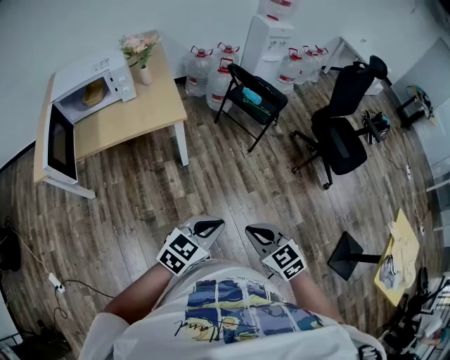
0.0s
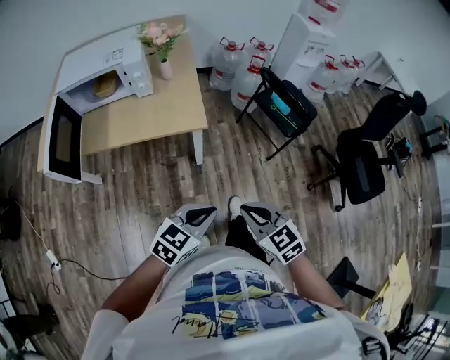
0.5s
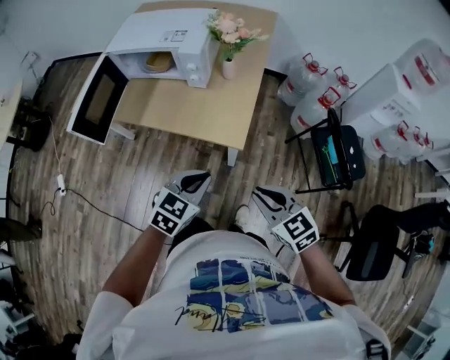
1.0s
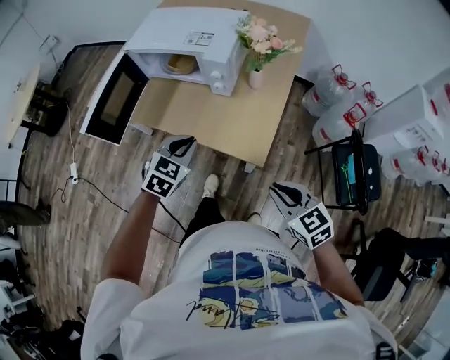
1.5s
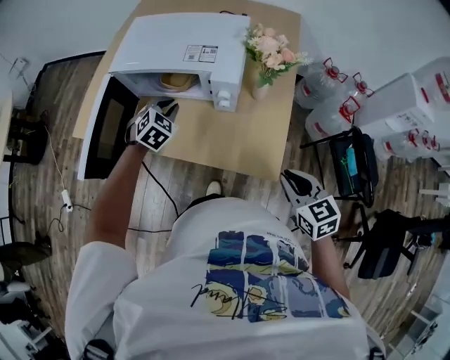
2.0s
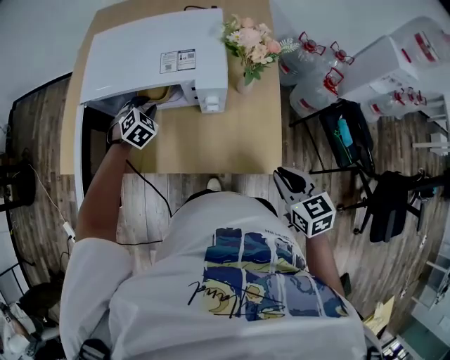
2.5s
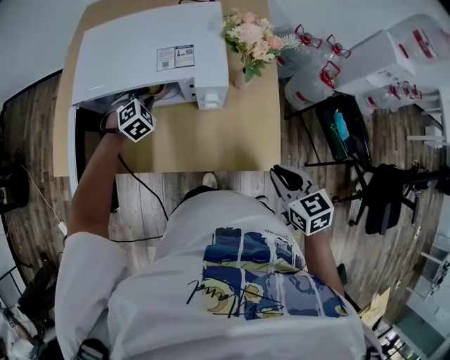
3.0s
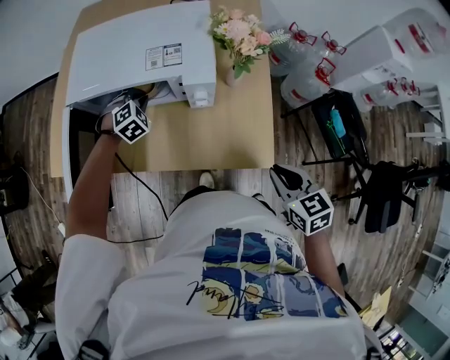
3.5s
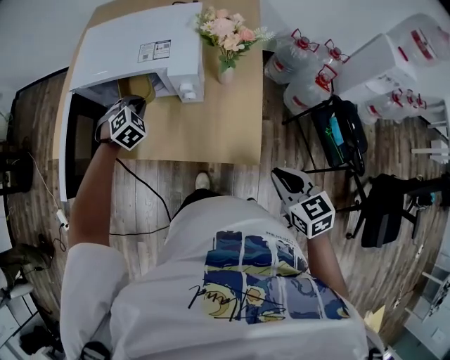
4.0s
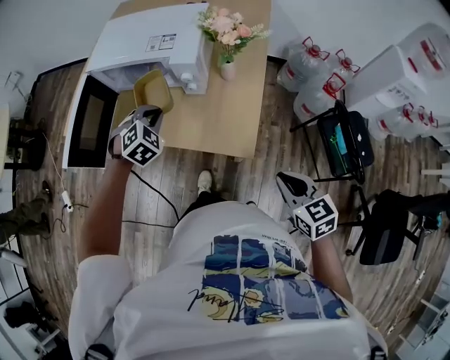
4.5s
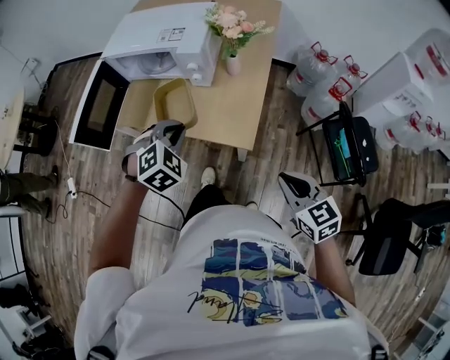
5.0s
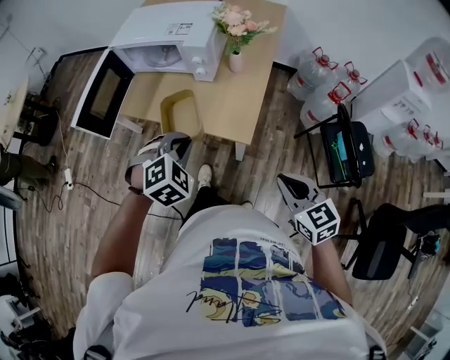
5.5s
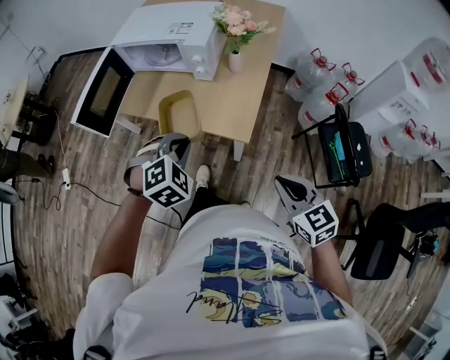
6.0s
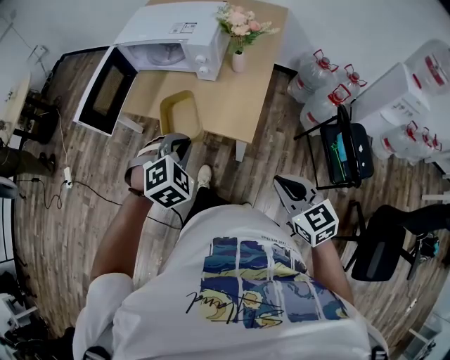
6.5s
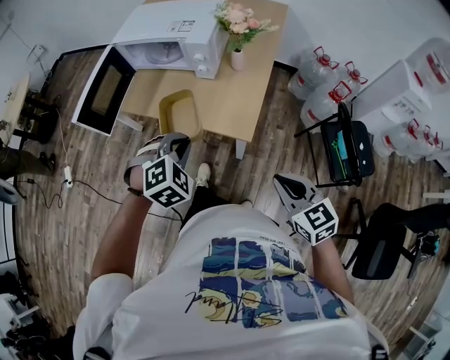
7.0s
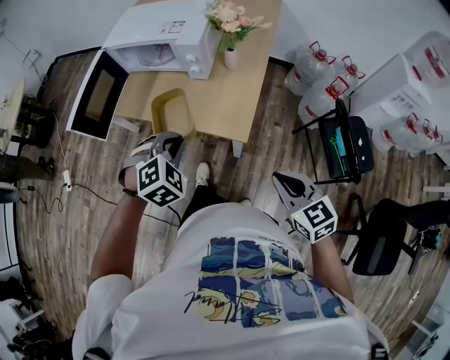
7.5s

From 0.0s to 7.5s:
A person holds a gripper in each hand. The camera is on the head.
From 0.0s to 2.0s: The two grippers travel together, about 70 cm. The left gripper turns by approximately 60 degrees.
From 2.0s to 4.0s: The right gripper shifts by approximately 5 cm, while the left gripper goes forward and returns, about 10 cm each way.
From 4.0s to 5.5s: The right gripper moves backward, approximately 15 cm. Meanwhile the left gripper heads backward, covering approximately 35 cm.
From 5.5s to 7.5s: The grippers stay close to where they were, moving slightly.

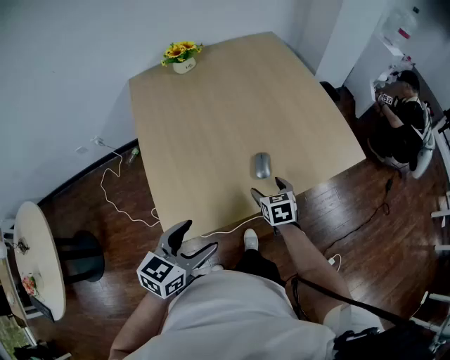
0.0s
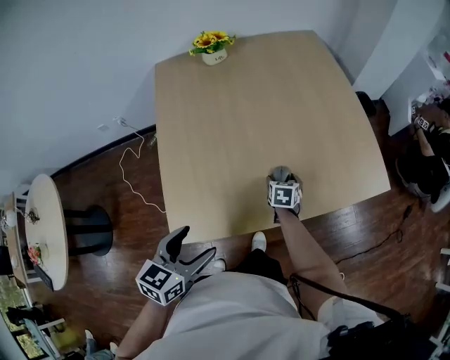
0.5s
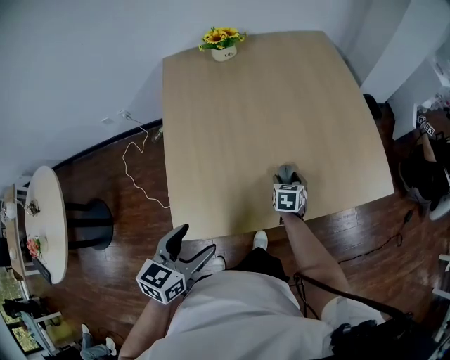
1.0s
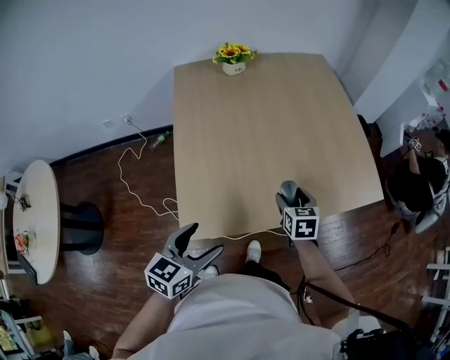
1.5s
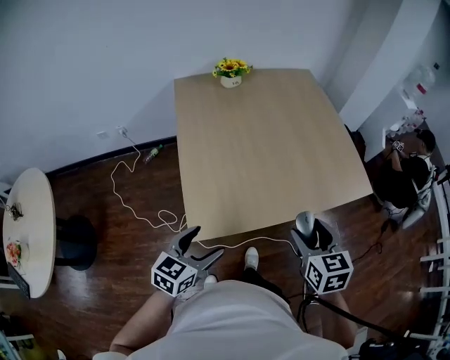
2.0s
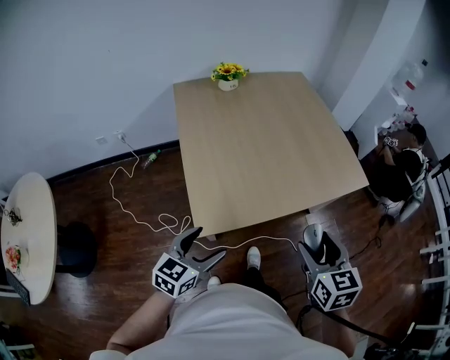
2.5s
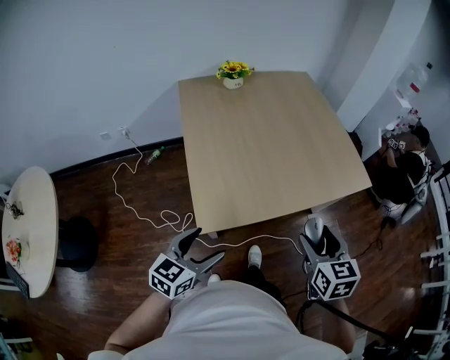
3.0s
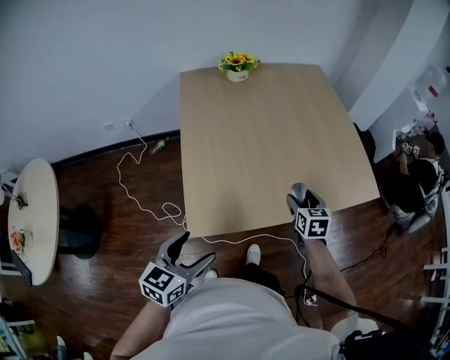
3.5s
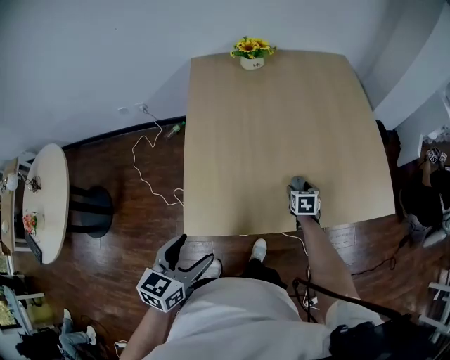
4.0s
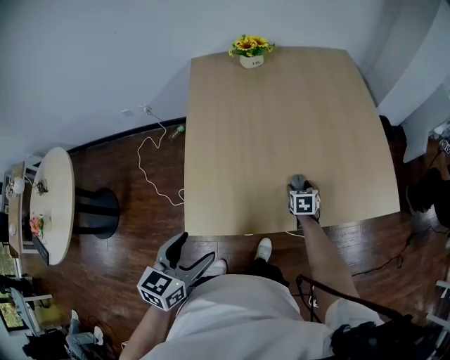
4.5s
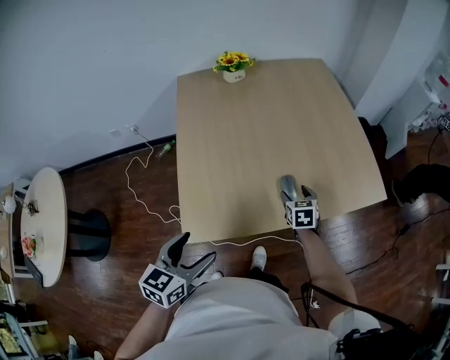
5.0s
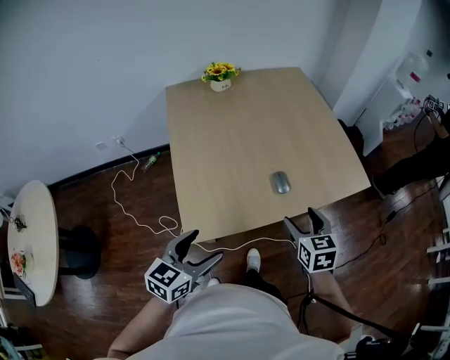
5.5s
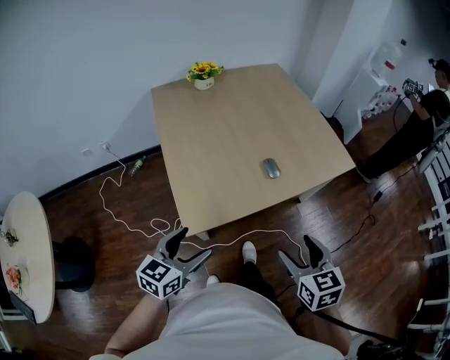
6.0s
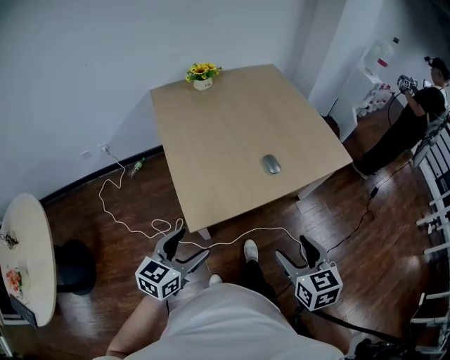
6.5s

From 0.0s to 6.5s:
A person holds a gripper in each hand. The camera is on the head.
From 0.0s to 2.0s: The left gripper shifts approximately 10 cm to the left; the right gripper goes about 25 cm upward and backward.
From 2.0s to 4.5s: The left gripper moves some 5 cm. Meanwhile the right gripper travels downward and forward by approximately 40 cm.
From 4.5s to 6.5s: The left gripper moves backward and to the left, some 15 cm, and turns by some 30 degrees; the right gripper moves backward and upward, roughly 50 cm, and rotates about 20 degrees.

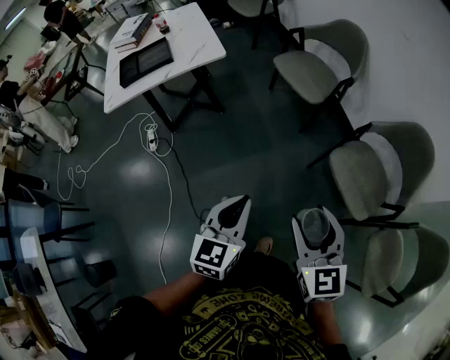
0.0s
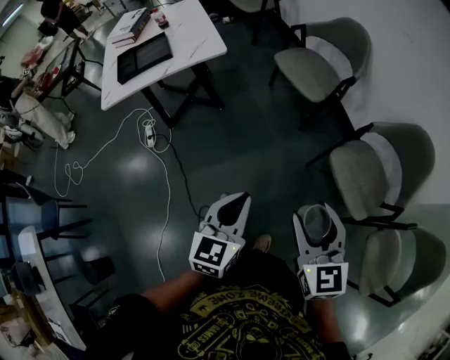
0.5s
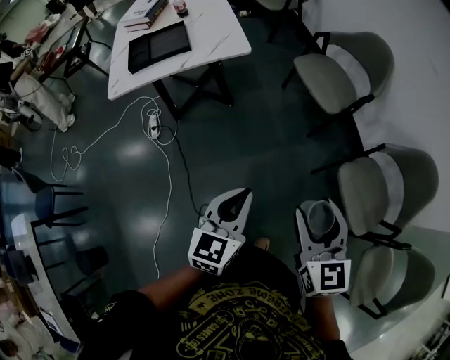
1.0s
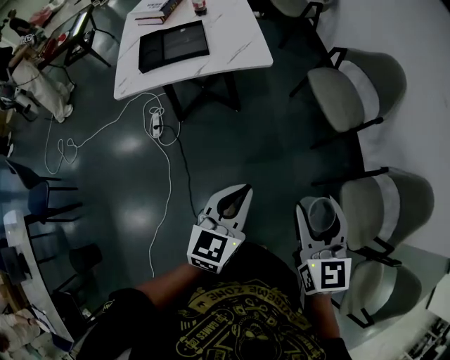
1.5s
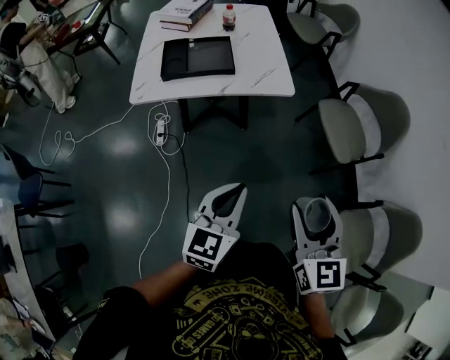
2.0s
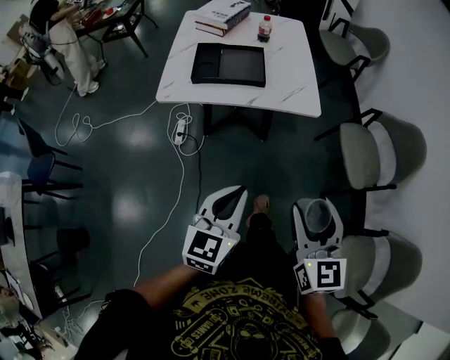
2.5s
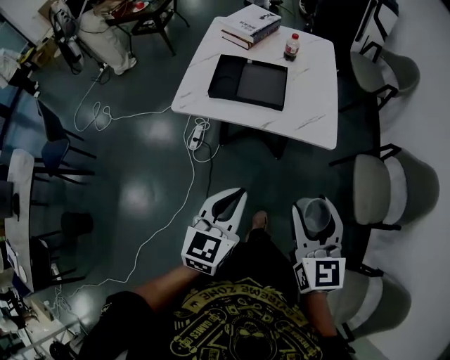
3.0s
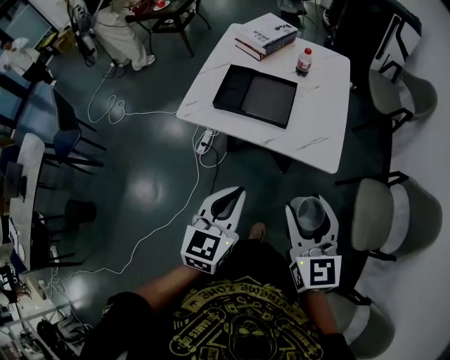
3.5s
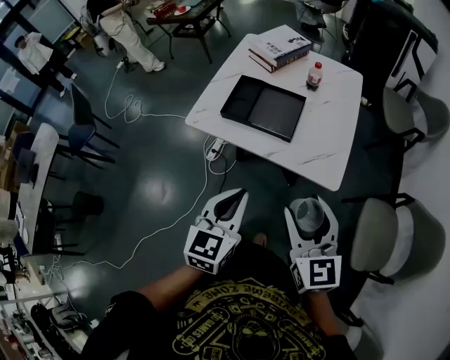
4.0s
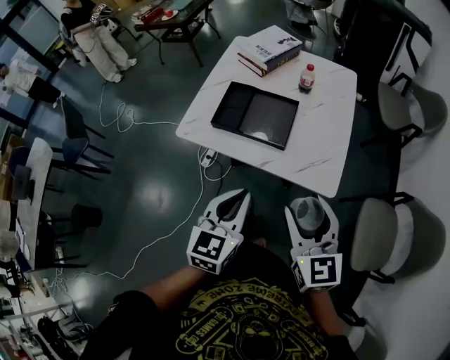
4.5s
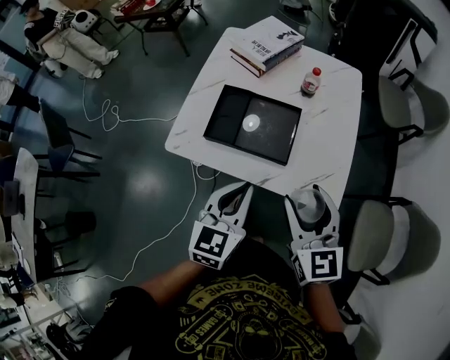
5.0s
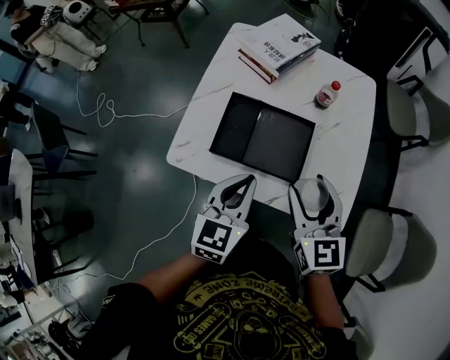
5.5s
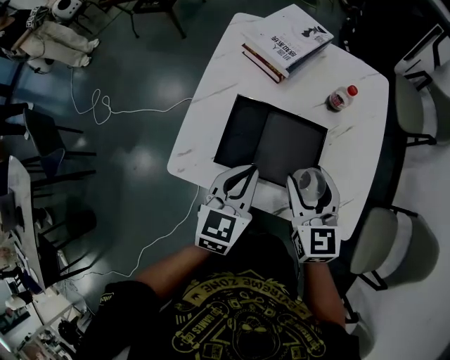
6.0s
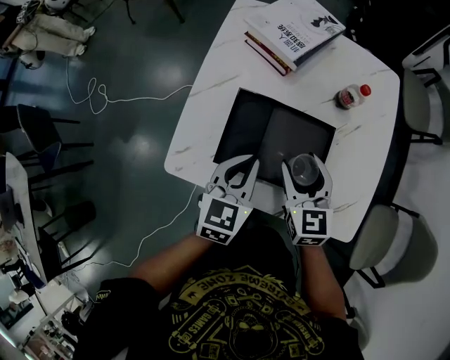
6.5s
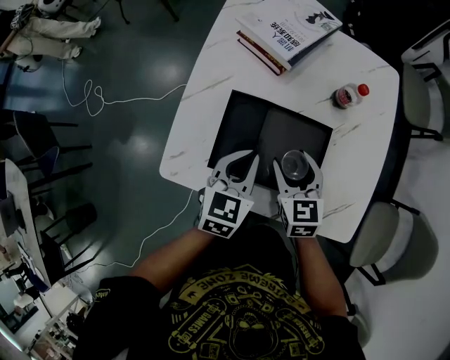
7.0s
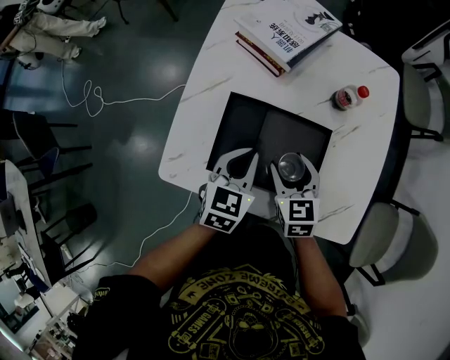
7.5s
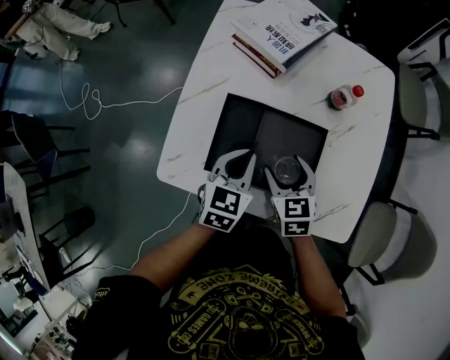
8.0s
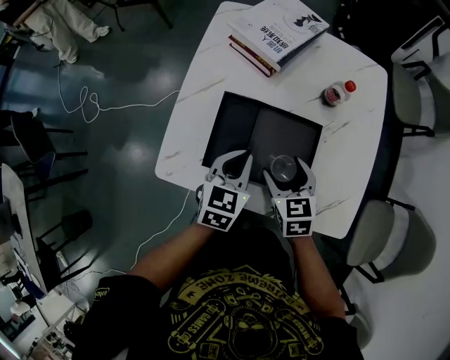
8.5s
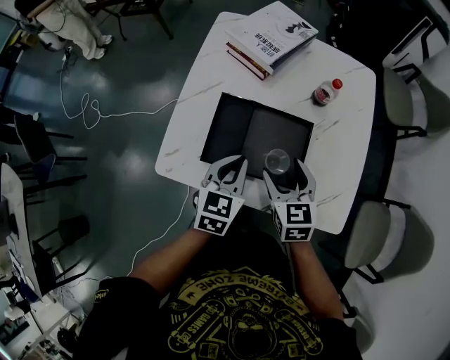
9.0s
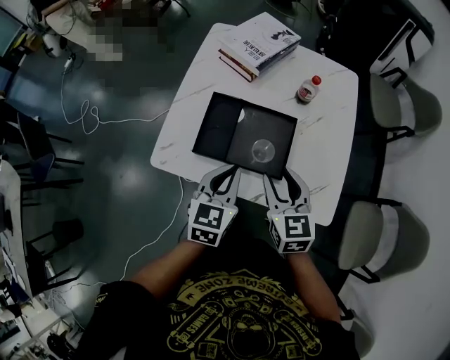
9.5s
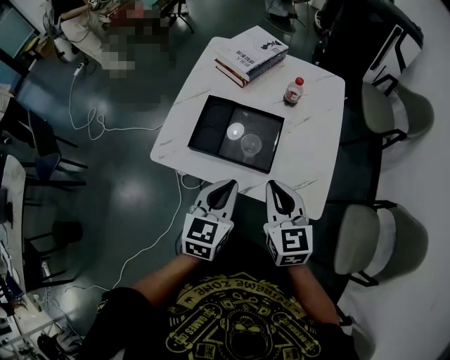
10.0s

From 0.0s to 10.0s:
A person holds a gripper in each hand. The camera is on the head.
From 0.0s to 2.0s: Both grippers move to the left and forward, approximately 30 cm.
From 2.0s to 4.0s: The left gripper ends up about 20 cm from where it was, and swivels some 30 degrees; the right gripper ends up roughly 30 cm from where it was, and rotates some 40 degrees.
From 4.0s to 6.0s: Both grippers travel together forward, approximately 30 cm.
From 6.0s to 8.0s: The left gripper shifts about 10 cm downward and forward; the right gripper heads downward, covering roughly 15 cm, and rotates approximately 20 degrees.
From 8.0s to 10.0s: The right gripper goes some 25 cm upward, backward and to the right, swivels about 20 degrees, and closes up, while the left gripper travels backward and upward by some 20 cm.

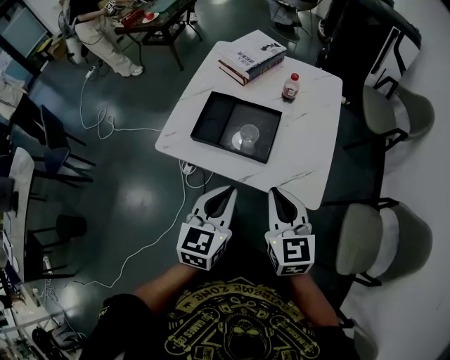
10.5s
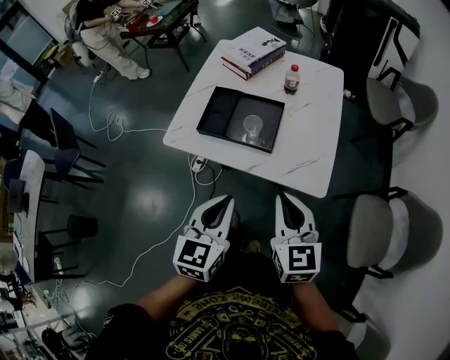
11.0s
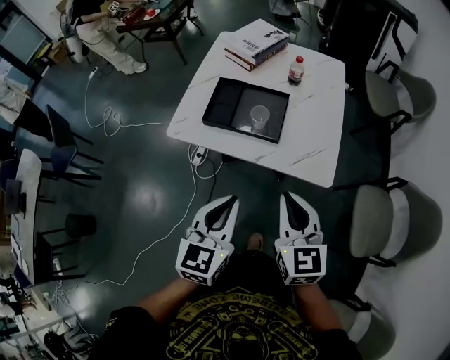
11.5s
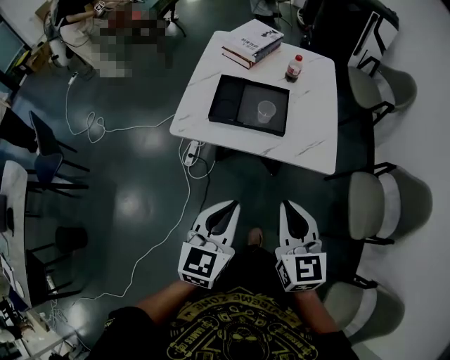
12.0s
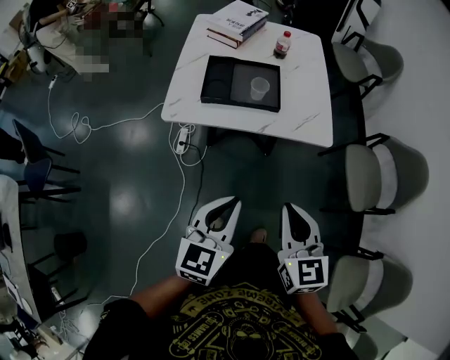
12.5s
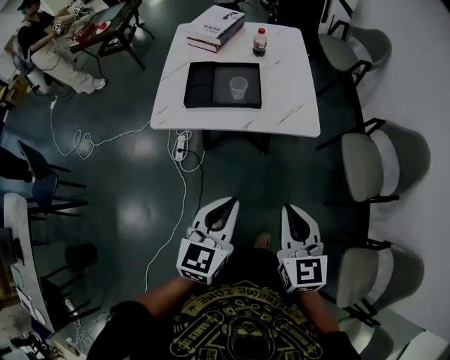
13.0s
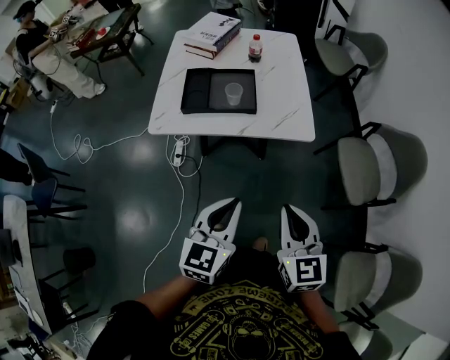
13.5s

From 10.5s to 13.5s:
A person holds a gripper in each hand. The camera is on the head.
From 10.5s to 12.0s: The grippers both shift backward and to the left by some 15 cm.
From 12.0s to 13.5s: The left gripper heads to the right, covering about 5 cm; the right gripper heads backward and to the right, covering about 10 cm.
